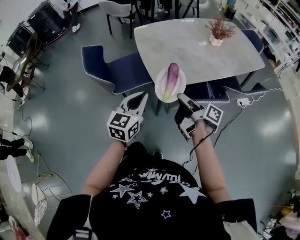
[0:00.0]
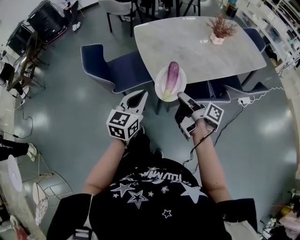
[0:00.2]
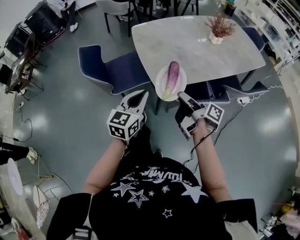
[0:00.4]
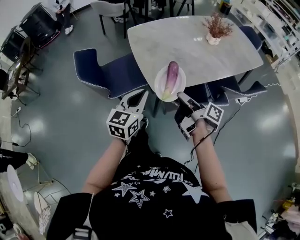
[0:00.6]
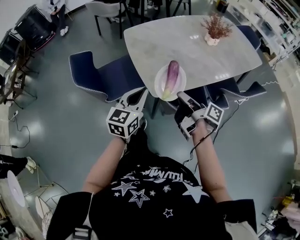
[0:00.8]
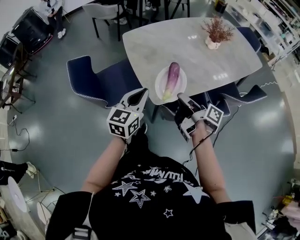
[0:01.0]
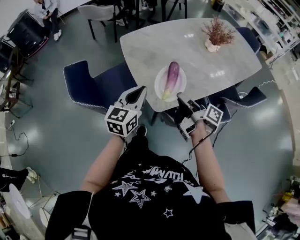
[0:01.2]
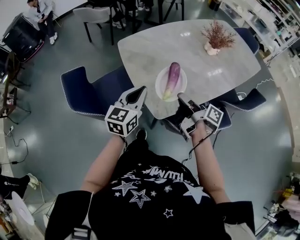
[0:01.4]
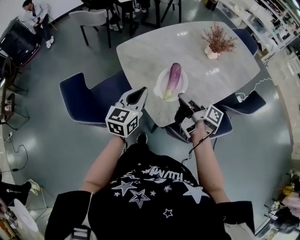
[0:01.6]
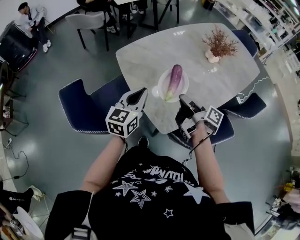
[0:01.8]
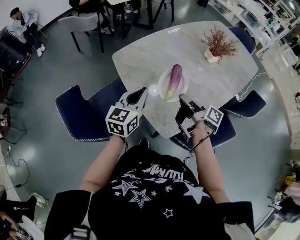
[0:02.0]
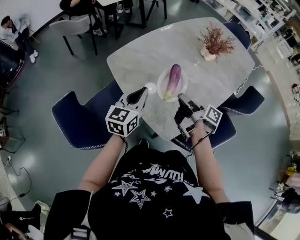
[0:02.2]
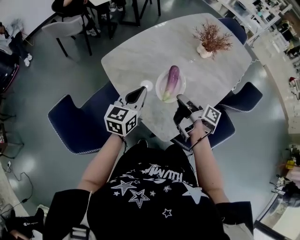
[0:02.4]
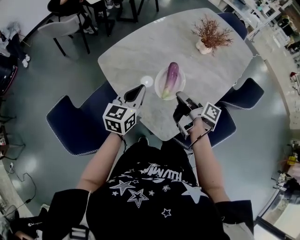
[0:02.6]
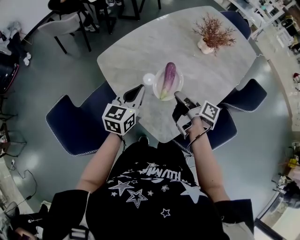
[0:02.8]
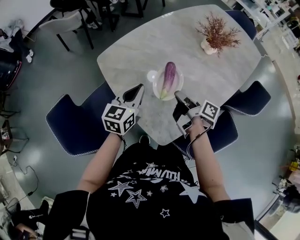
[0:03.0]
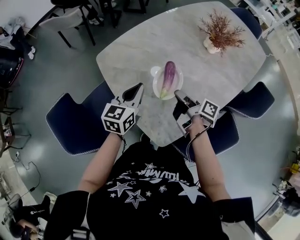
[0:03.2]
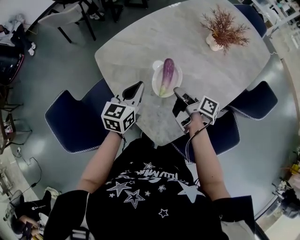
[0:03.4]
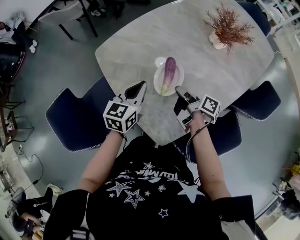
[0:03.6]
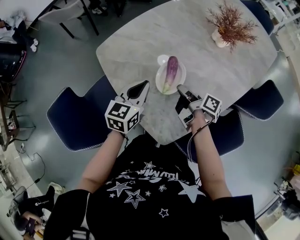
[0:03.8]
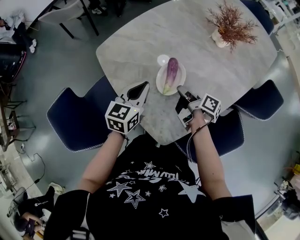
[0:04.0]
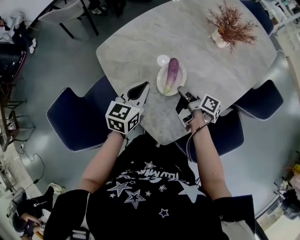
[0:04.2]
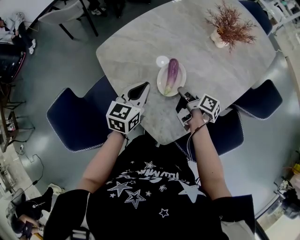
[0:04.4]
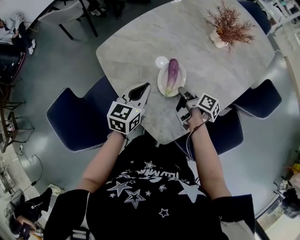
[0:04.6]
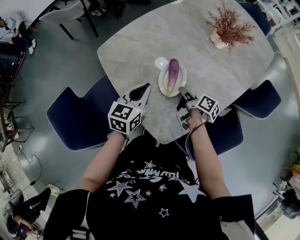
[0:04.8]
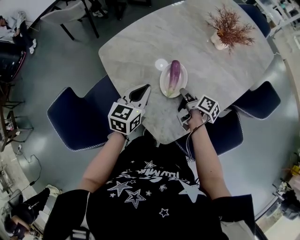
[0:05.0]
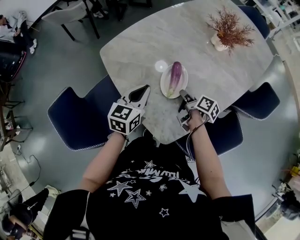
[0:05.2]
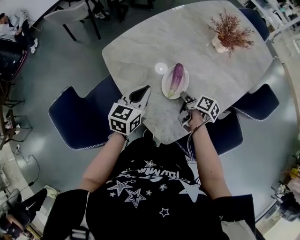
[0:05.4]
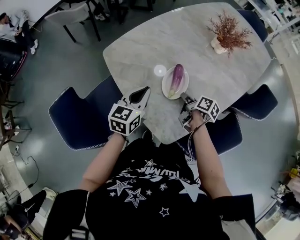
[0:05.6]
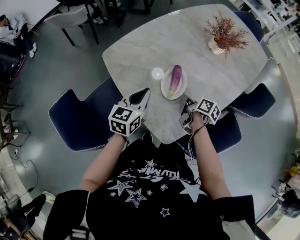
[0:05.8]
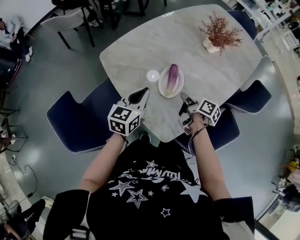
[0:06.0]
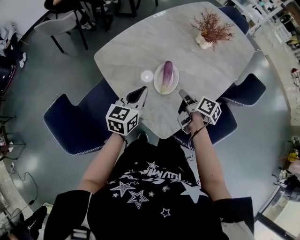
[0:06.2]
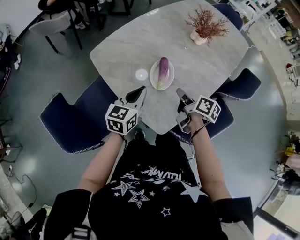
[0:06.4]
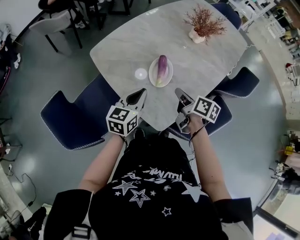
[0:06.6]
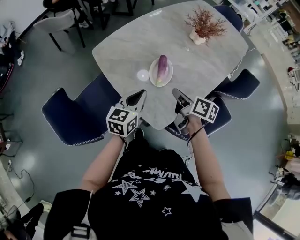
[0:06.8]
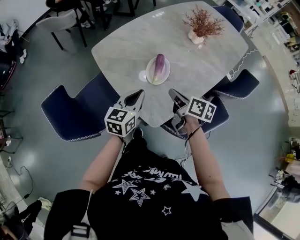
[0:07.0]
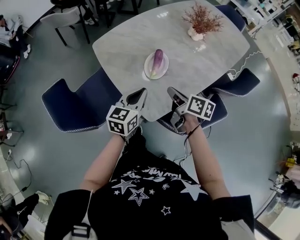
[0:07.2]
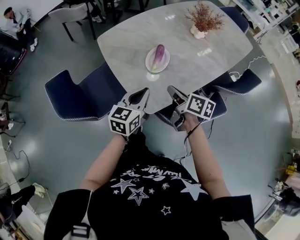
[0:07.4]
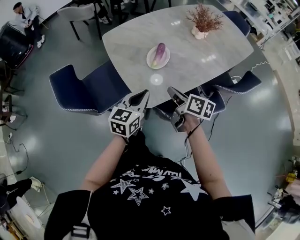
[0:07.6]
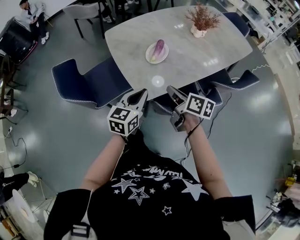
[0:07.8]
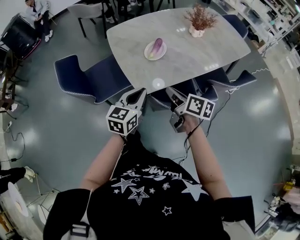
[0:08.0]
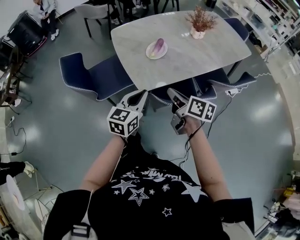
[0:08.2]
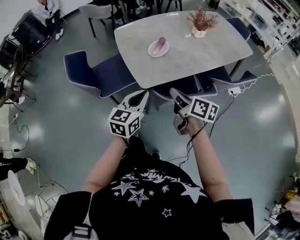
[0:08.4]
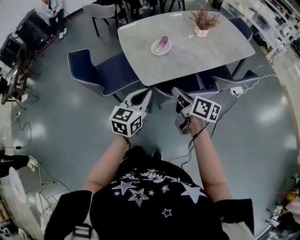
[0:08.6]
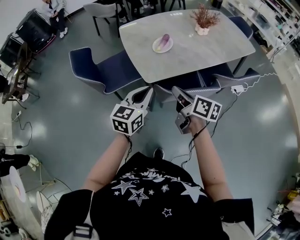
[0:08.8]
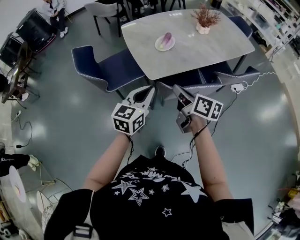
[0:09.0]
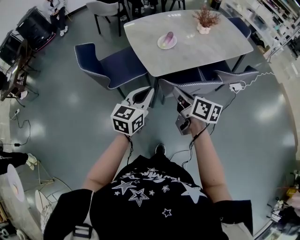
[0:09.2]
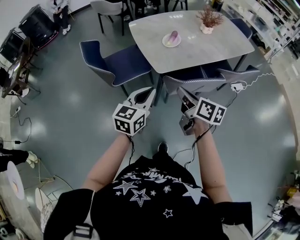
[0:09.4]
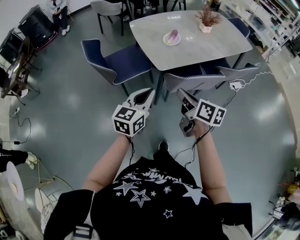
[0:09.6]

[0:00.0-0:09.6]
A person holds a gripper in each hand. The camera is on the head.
0:00.0 to 0:01.6: The left gripper changes place by some 25 cm.
0:01.6 to 0:03.2: The left gripper changes place by roughly 20 cm.
0:04.8 to 0:06.4: The left gripper changes place by approximately 5 cm.
0:06.4 to 0:08.0: The left gripper moves approximately 30 cm.
0:08.0 to 0:09.6: The left gripper changes place by some 25 cm.

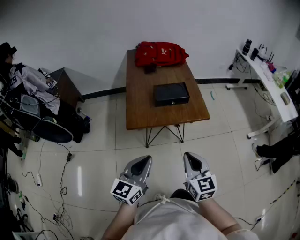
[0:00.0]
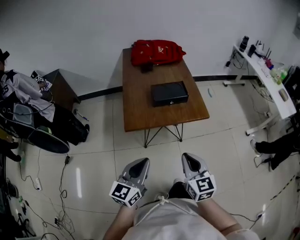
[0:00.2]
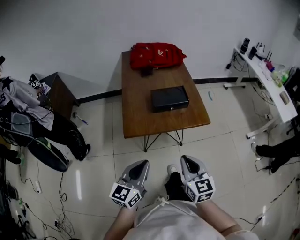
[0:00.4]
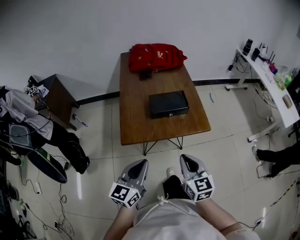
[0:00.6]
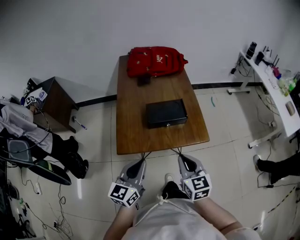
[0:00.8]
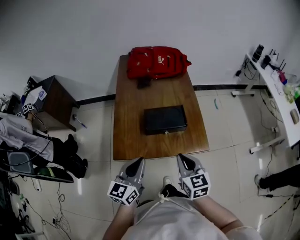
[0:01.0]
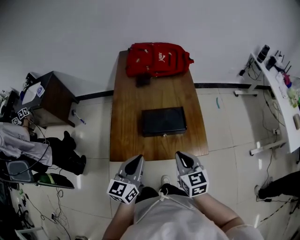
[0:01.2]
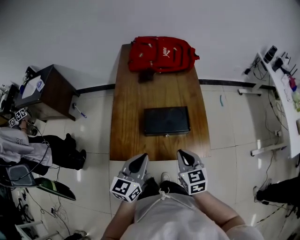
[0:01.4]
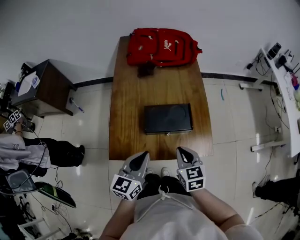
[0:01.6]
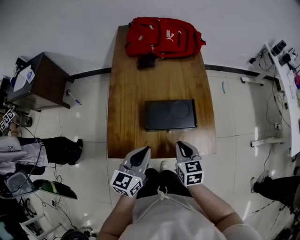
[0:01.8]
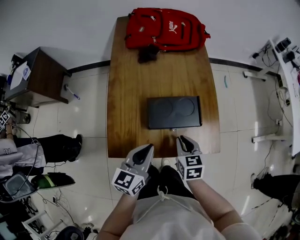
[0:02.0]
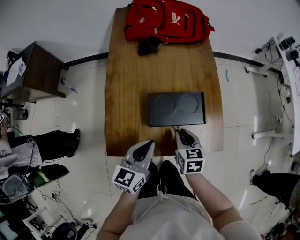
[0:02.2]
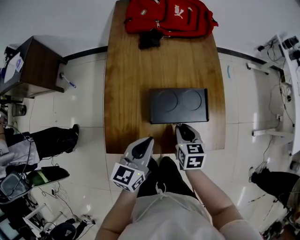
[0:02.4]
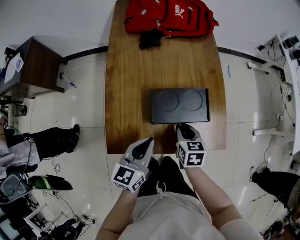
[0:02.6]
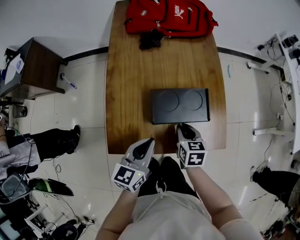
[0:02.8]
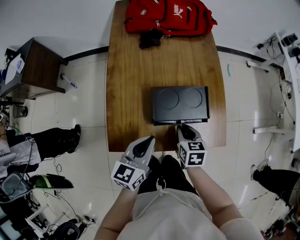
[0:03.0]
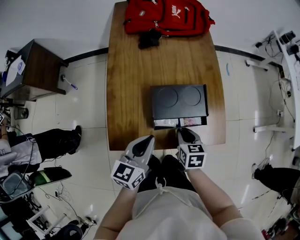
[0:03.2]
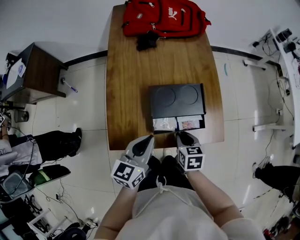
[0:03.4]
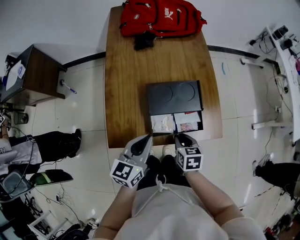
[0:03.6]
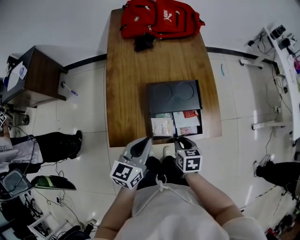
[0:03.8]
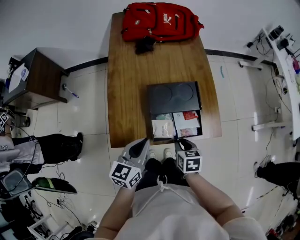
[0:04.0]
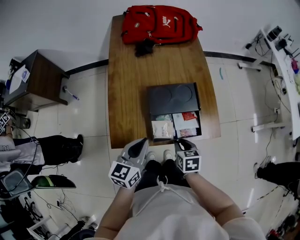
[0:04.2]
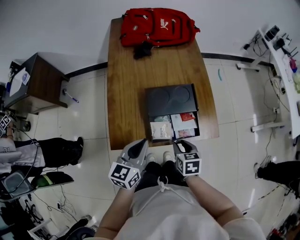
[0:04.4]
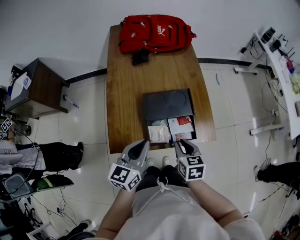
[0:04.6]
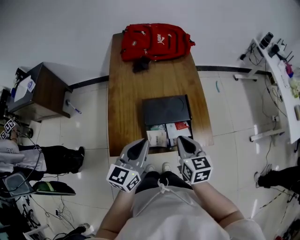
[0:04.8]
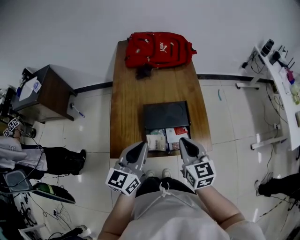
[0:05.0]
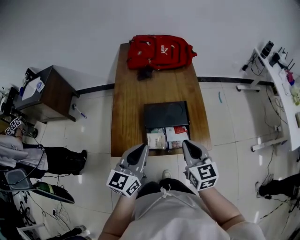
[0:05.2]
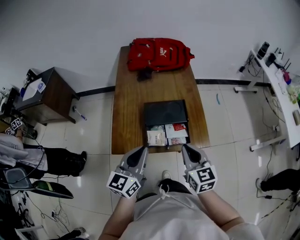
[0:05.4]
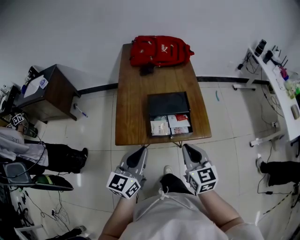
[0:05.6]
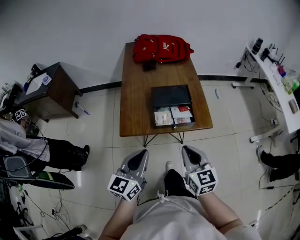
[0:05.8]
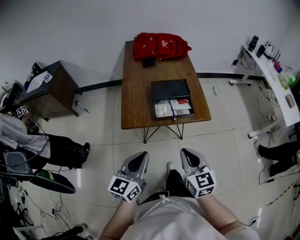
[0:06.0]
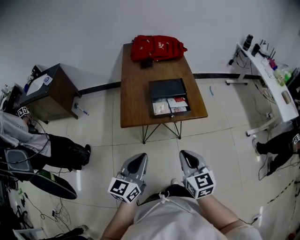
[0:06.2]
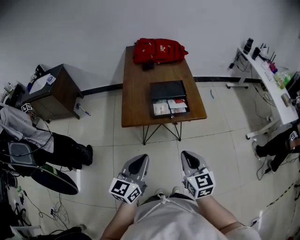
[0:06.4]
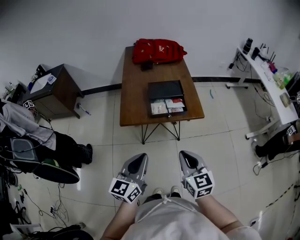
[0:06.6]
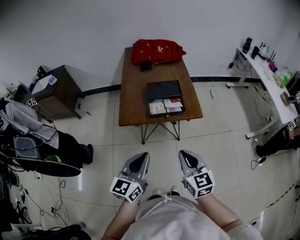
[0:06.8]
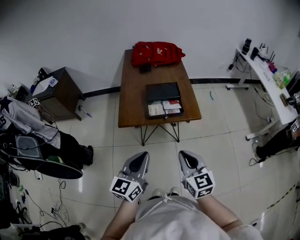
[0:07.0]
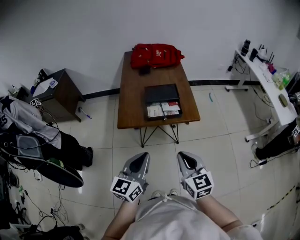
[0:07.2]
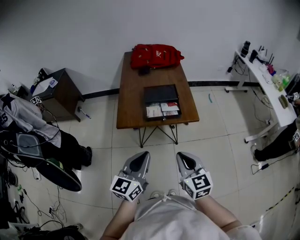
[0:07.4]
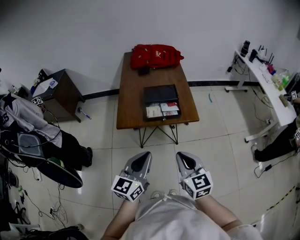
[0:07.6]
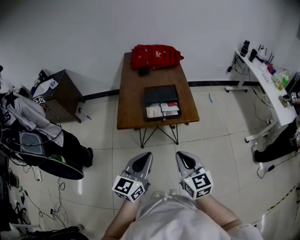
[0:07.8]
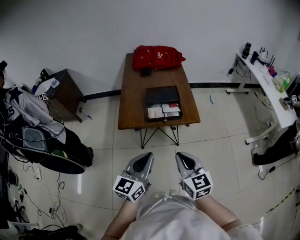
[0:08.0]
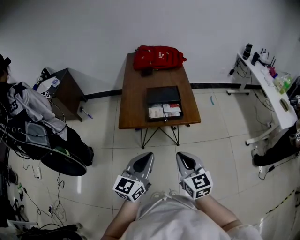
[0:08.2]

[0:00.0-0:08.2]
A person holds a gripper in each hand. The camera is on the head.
0:00.0 to 0:01.6: Both grippers travel together forward, approximately 35 cm. The right gripper rotates approximately 20 degrees.
0:01.6 to 0:03.2: The right gripper is displaced downward by approximately 10 cm, and rotates some 20 degrees, while the left gripper moves downward, roughly 5 cm.
0:03.2 to 0:05.0: The left gripper heads upward, covering some 10 cm; the right gripper moves upward, approximately 20 cm, and turns by roughly 30 degrees.
0:05.0 to 0:06.6: Both grippers move backward, roughly 35 cm.
0:06.6 to 0:08.2: The left gripper travels to the right by about 5 cm.

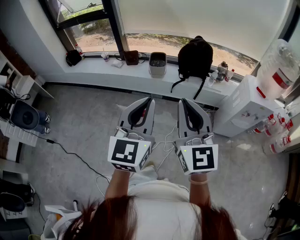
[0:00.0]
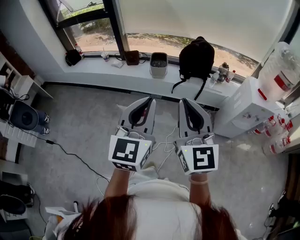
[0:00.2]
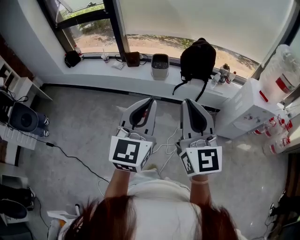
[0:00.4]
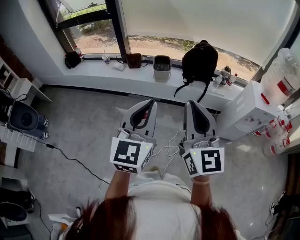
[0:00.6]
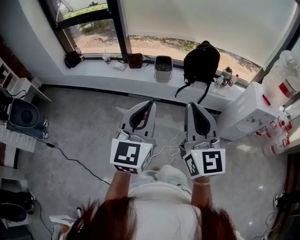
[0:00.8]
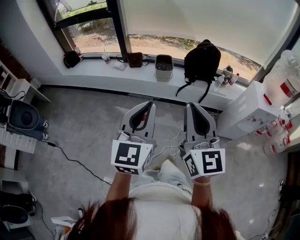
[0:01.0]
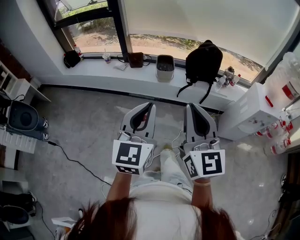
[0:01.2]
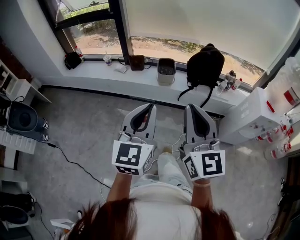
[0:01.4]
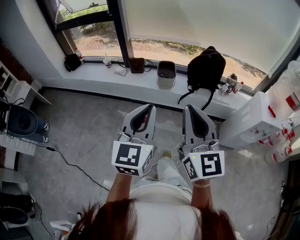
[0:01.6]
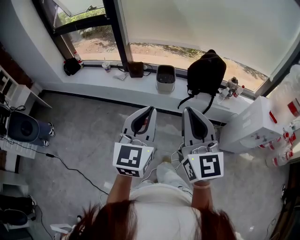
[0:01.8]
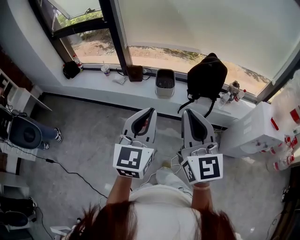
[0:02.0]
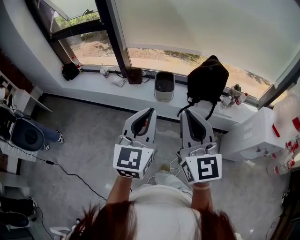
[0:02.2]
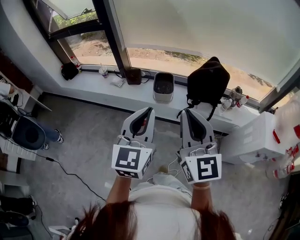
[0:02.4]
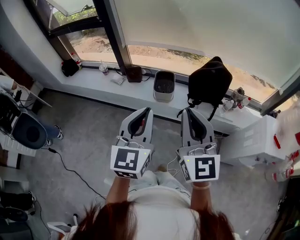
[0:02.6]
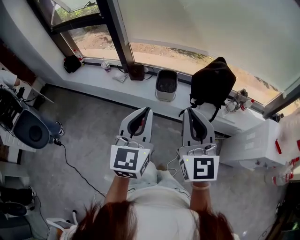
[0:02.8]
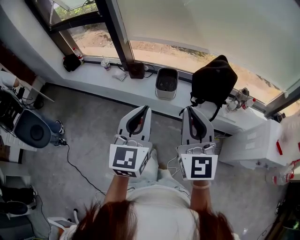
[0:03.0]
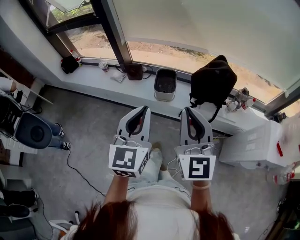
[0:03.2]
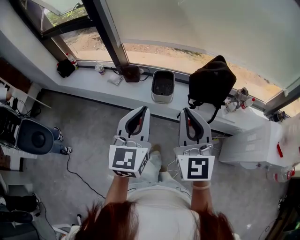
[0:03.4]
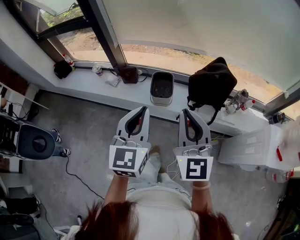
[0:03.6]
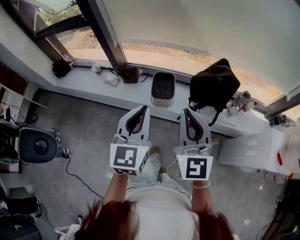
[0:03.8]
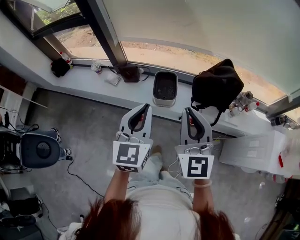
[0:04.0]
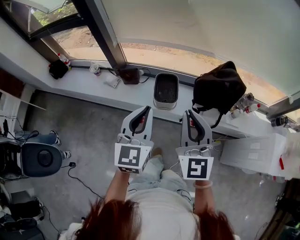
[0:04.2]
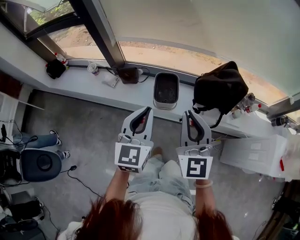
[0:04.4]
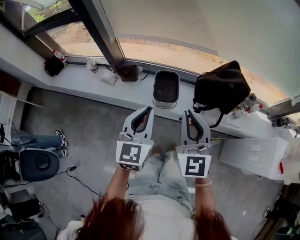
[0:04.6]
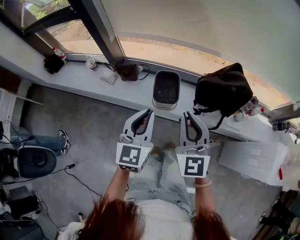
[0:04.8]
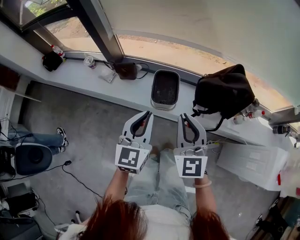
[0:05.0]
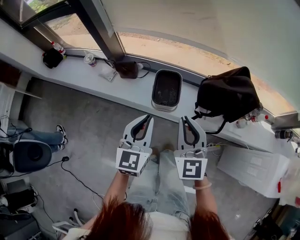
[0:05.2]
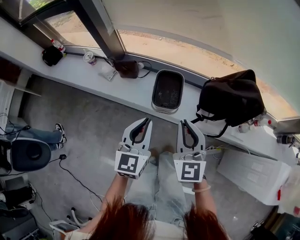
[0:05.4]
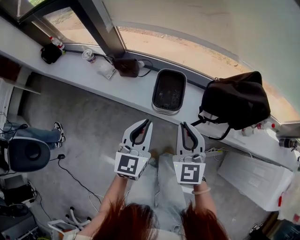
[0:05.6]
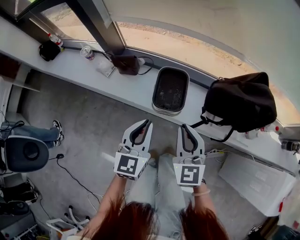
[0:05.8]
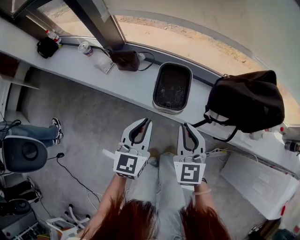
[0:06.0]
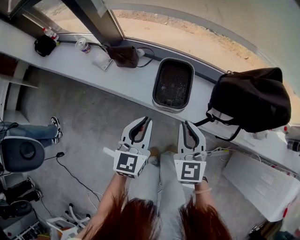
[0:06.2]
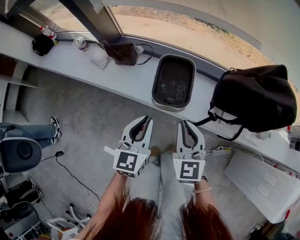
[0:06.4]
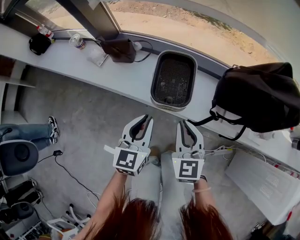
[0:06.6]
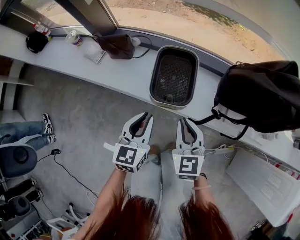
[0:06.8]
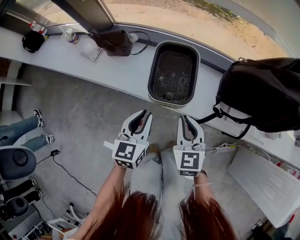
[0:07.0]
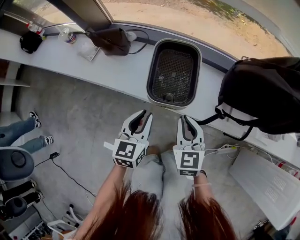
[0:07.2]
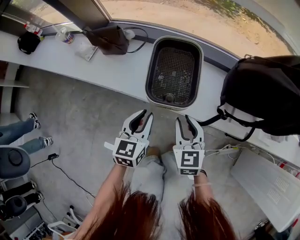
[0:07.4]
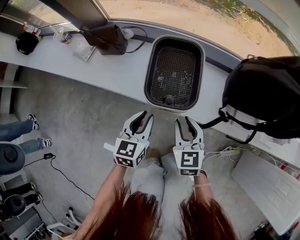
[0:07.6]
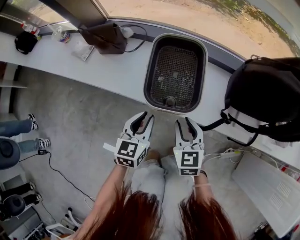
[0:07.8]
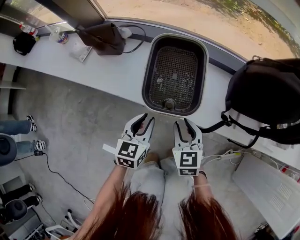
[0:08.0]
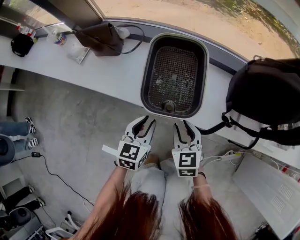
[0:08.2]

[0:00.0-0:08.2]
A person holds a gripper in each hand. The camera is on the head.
0:00.0 to 0:01.6: The grippers both shift forward and to the left by about 15 cm.
0:01.6 to 0:03.2: Both grippers travel together forward, roughly 25 cm.
0:03.2 to 0:05.0: The two grippers go about 25 cm forward and downward.
0:05.0 to 0:06.6: Both grippers travel together downward, about 30 cm.
0:06.6 to 0:08.2: The two grippers go roughly 25 cm downward. The right gripper opens its fingers.
